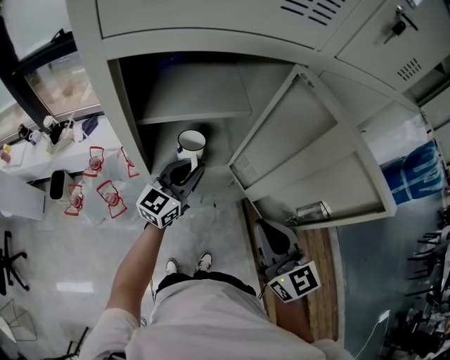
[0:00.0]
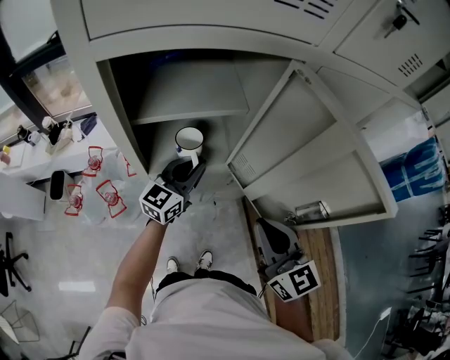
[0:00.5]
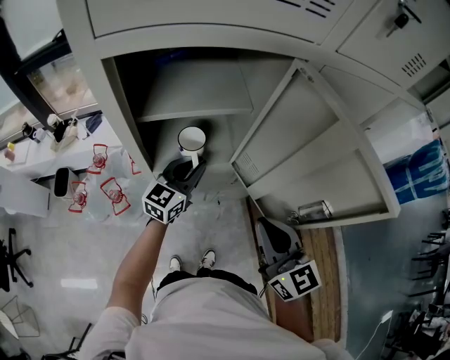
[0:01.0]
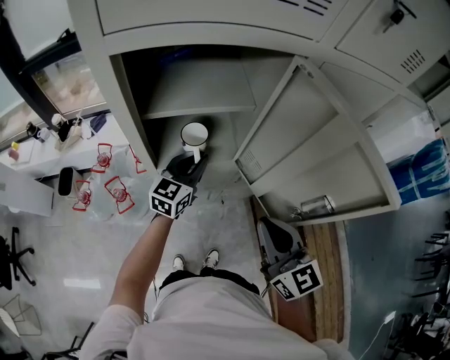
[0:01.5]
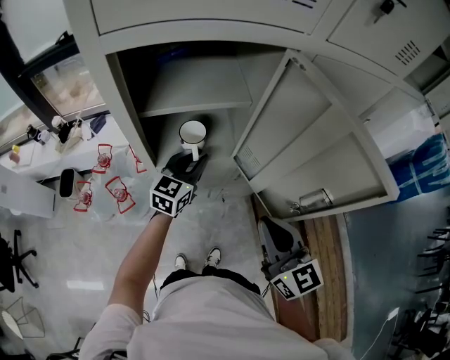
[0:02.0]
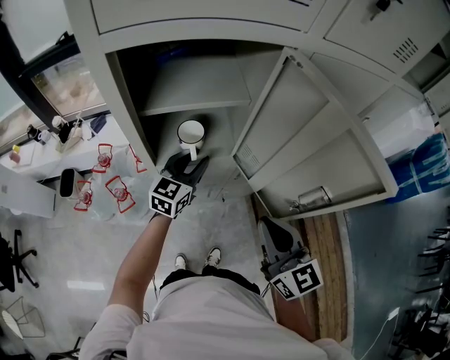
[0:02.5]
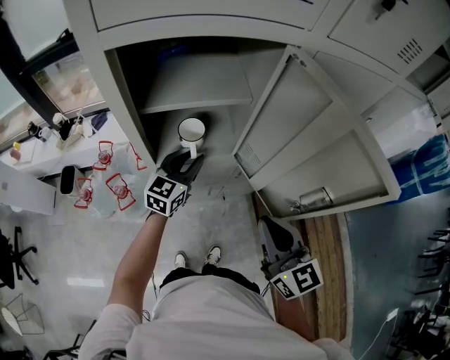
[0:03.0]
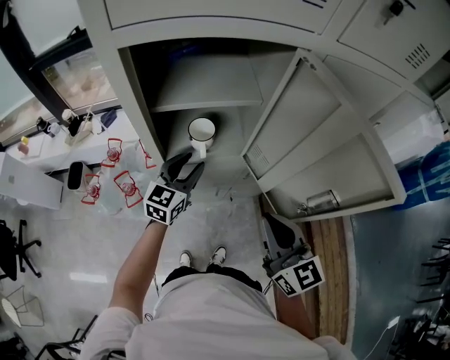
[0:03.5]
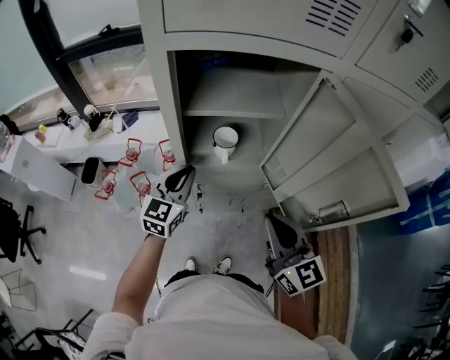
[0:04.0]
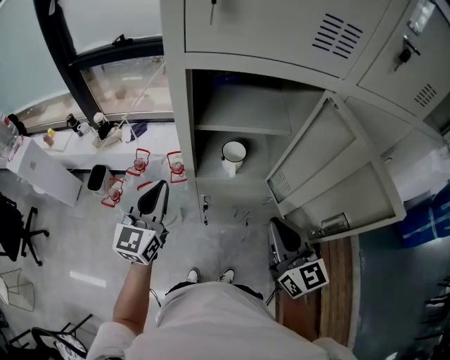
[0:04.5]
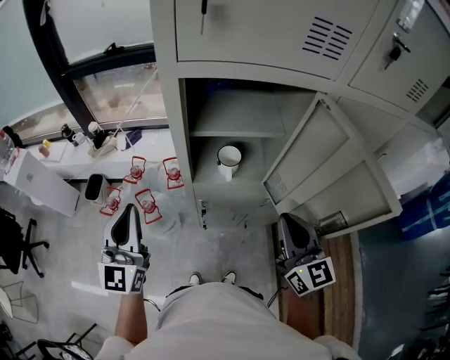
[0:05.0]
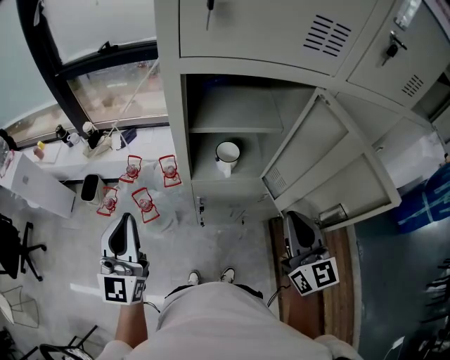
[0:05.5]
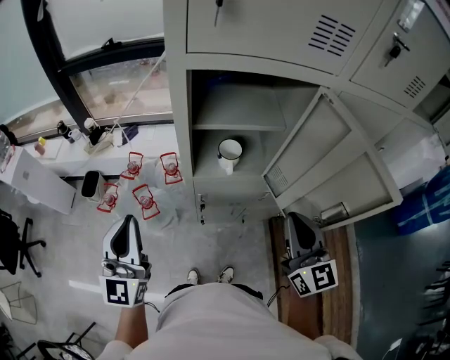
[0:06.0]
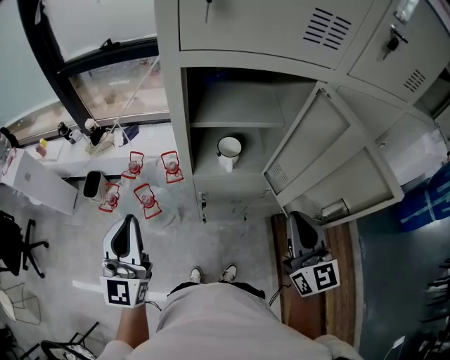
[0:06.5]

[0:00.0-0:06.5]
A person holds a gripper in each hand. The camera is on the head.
0:00.0 to 0:02.0: There are only small adjustments of the grippers.
0:02.0 to 0:04.5: The left gripper goes approximately 25 cm to the left, backward and upward, changes its angle by about 30 degrees, and opens and closes again; the right gripper shifts by approximately 5 cm.
0:04.5 to 0:06.5: The right gripper ends up roughly 5 cm from where it was, while the left gripper goes some 15 cm backward, to the left and upward.

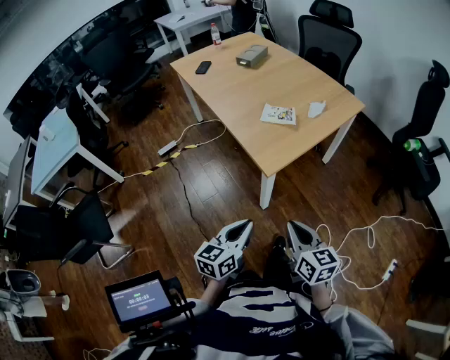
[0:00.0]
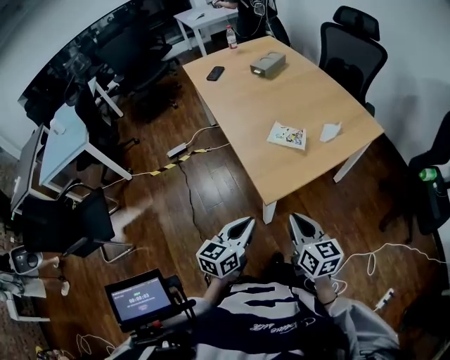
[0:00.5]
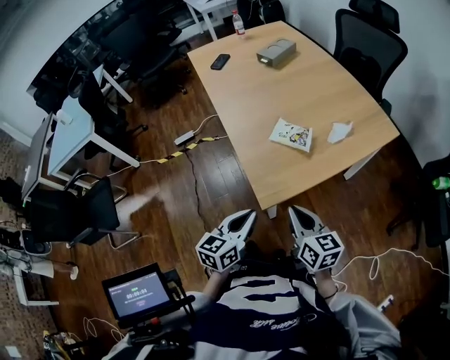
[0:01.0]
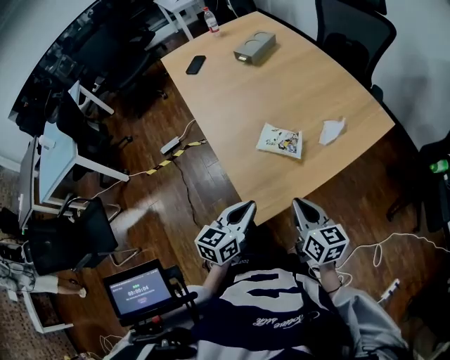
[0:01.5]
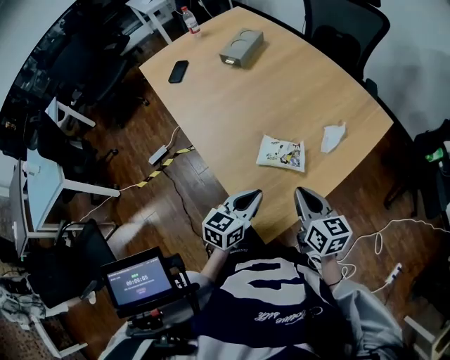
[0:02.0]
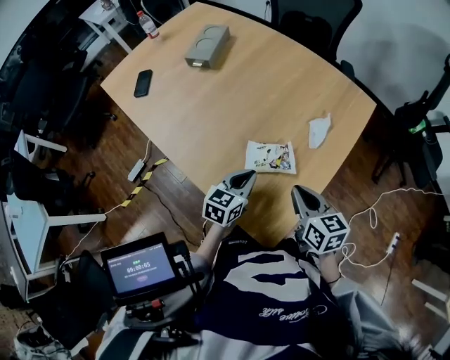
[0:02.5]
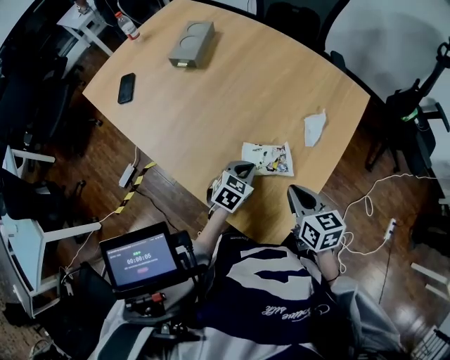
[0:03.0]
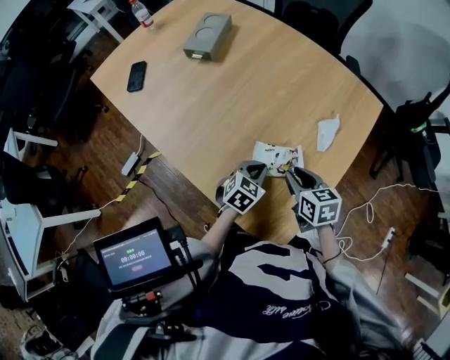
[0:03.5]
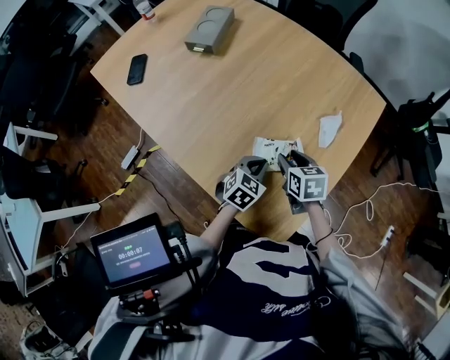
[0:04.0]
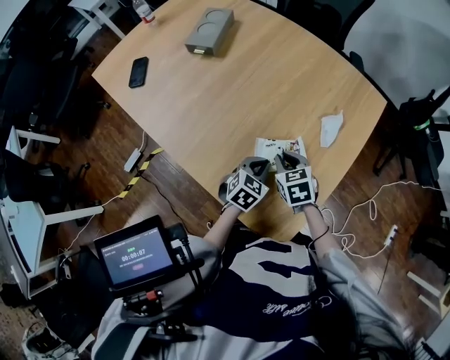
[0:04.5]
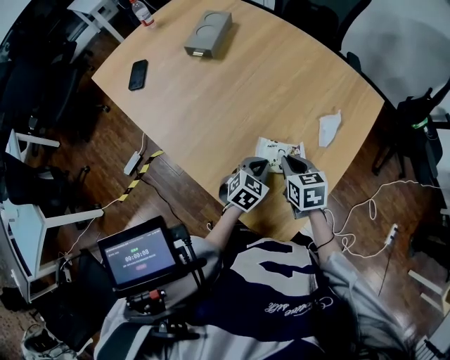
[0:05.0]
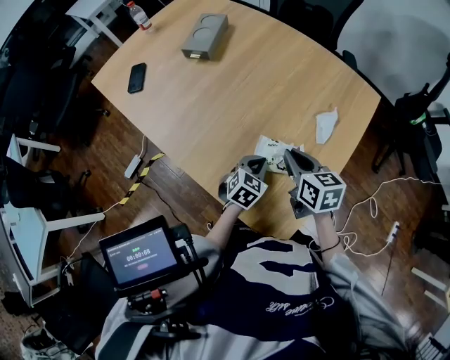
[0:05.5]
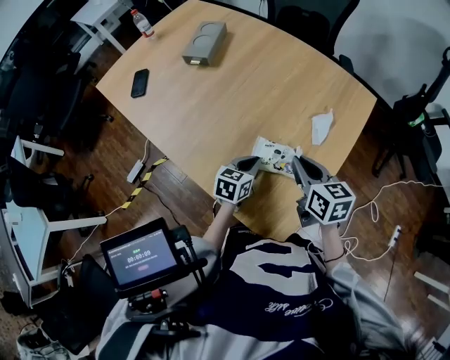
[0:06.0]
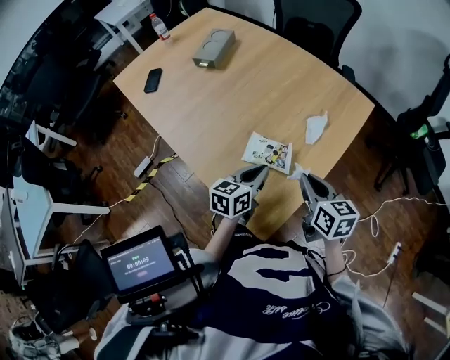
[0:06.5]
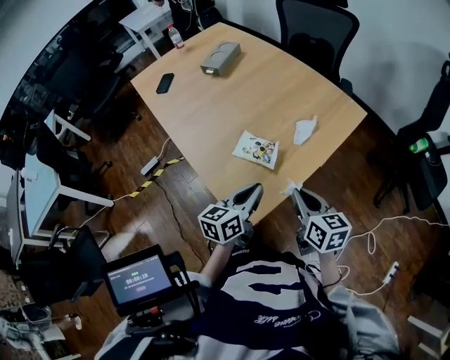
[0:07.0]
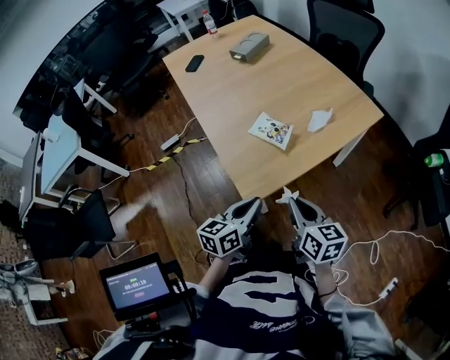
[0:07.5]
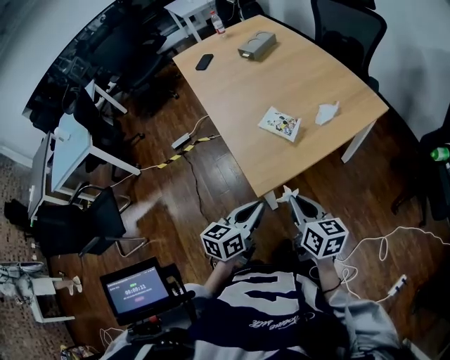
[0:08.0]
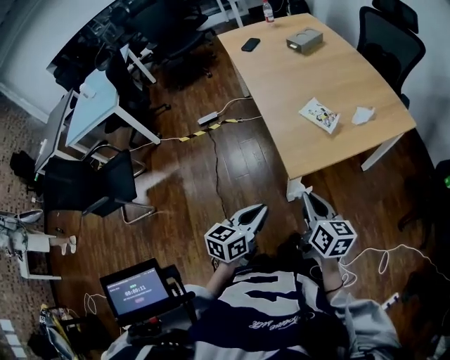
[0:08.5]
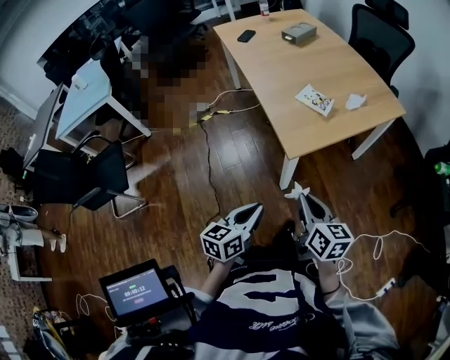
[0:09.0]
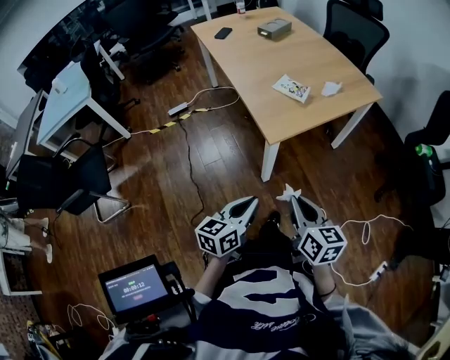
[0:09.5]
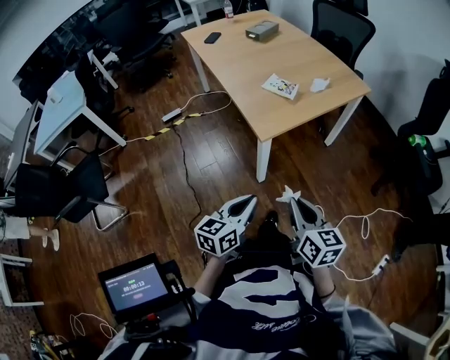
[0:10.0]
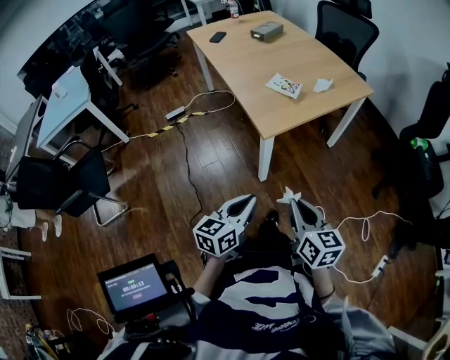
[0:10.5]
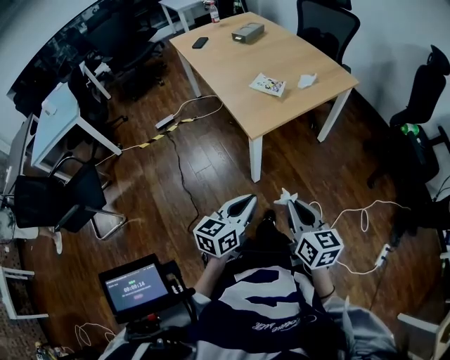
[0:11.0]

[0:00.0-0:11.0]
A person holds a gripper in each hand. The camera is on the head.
0:00.0 to 0:02.0: Both grippers are carried forward, roughly 40 cm.
0:02.0 to 0:03.5: Both grippers travel together forward and downward, some 15 cm. The right gripper rotates roughly 20 degrees, and opens. The left gripper rotates about 40 degrees.
0:03.5 to 0:05.5: The right gripper shifts about 5 cm upward.
0:05.5 to 0:07.5: The right gripper heads backward and to the right, covering approximately 30 cm, and turns by about 20 degrees, while the left gripper is displaced backward and upward by roughly 35 cm, and turns by approximately 60 degrees.
0:07.5 to 0:09.0: The two grippers go approximately 25 cm backward and to the left.
0:09.0 to 0:11.0: The left gripper travels to the right and backward by some 10 cm. The right gripper heads backward and to the right, covering roughly 15 cm.

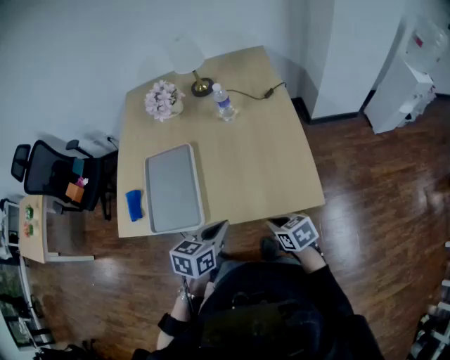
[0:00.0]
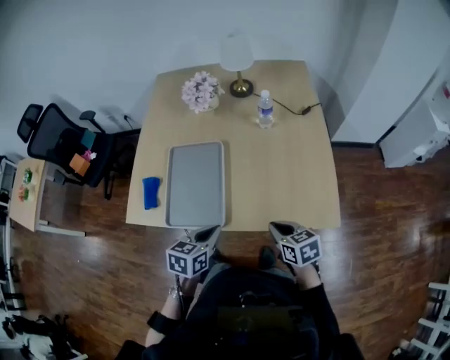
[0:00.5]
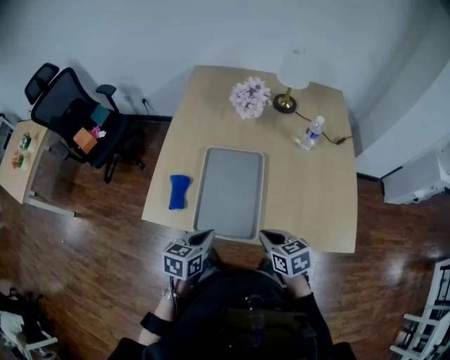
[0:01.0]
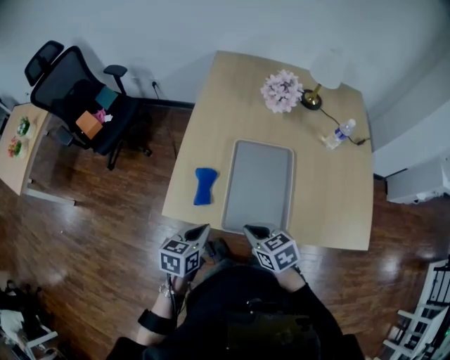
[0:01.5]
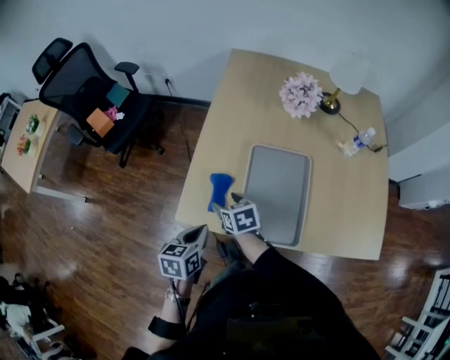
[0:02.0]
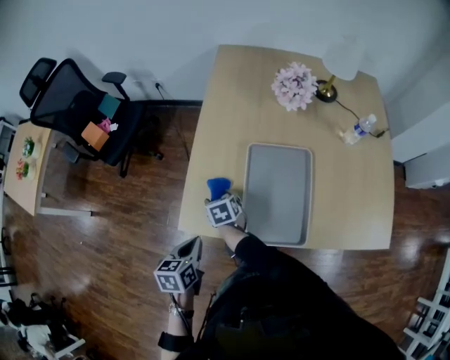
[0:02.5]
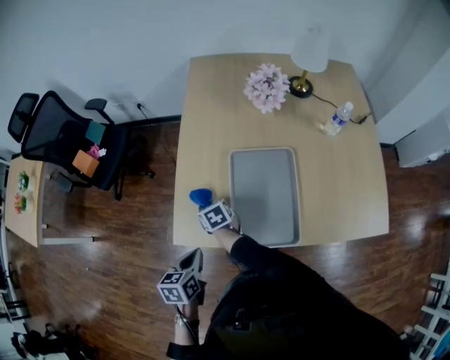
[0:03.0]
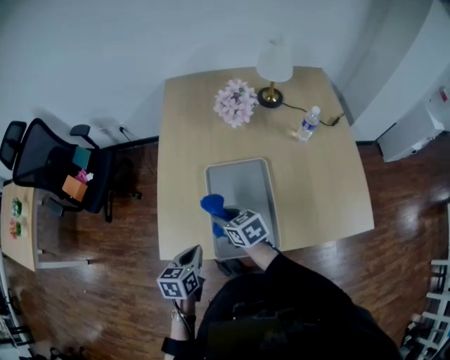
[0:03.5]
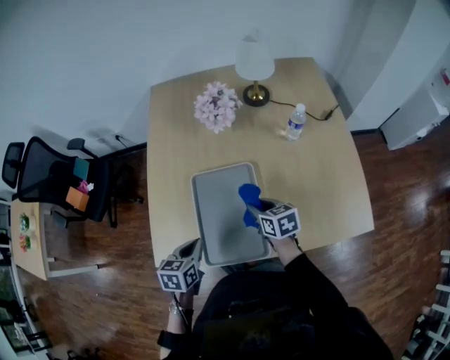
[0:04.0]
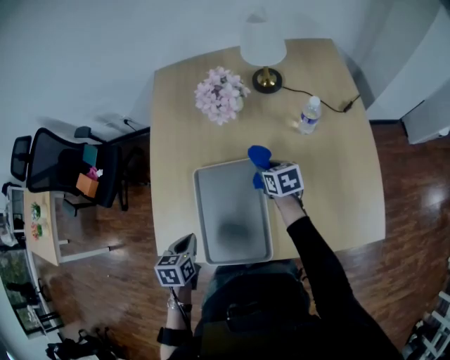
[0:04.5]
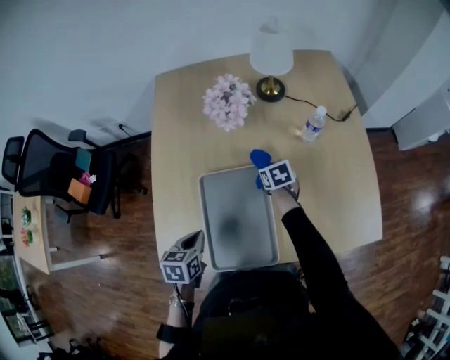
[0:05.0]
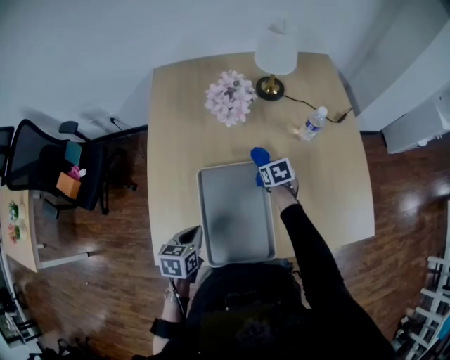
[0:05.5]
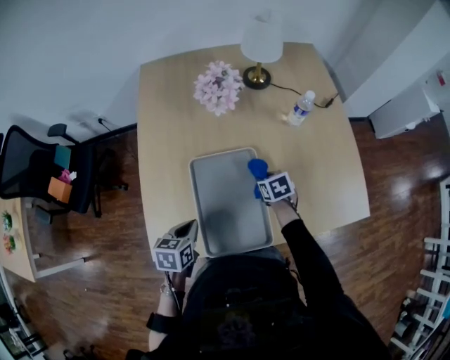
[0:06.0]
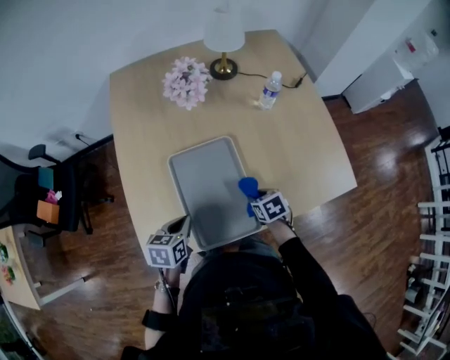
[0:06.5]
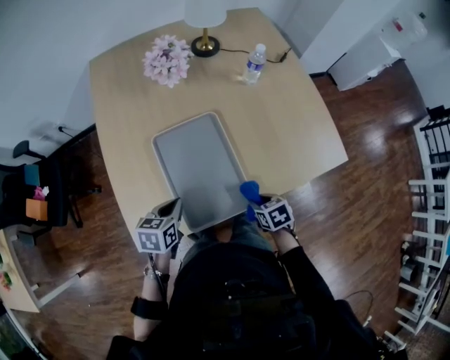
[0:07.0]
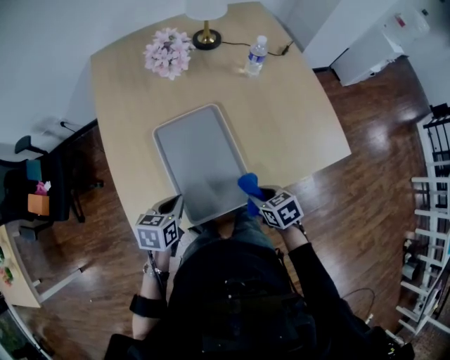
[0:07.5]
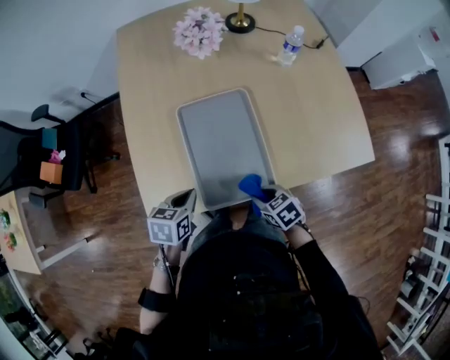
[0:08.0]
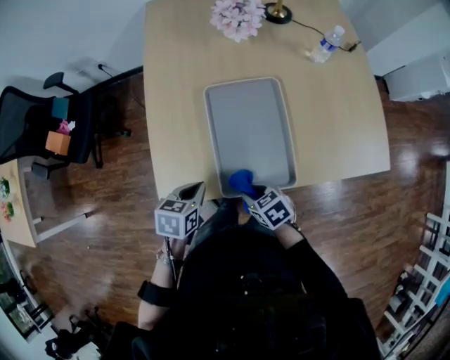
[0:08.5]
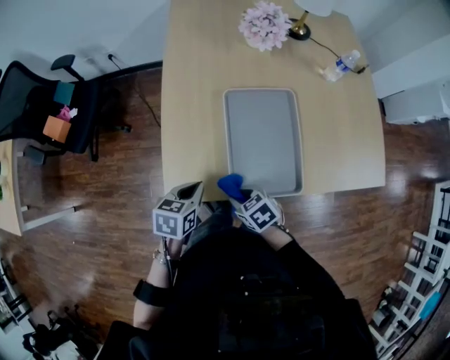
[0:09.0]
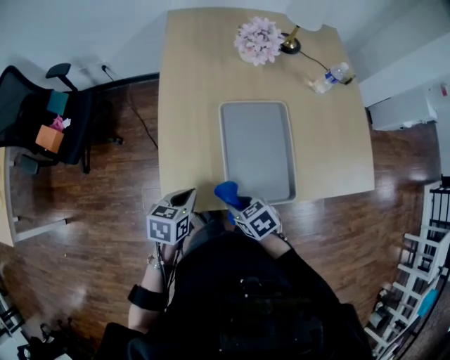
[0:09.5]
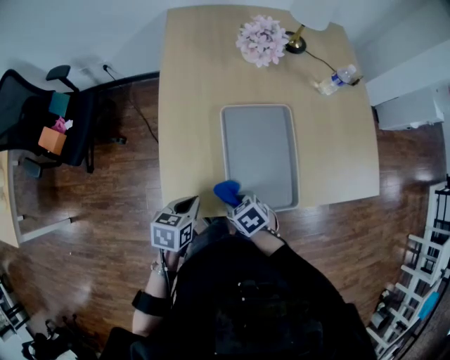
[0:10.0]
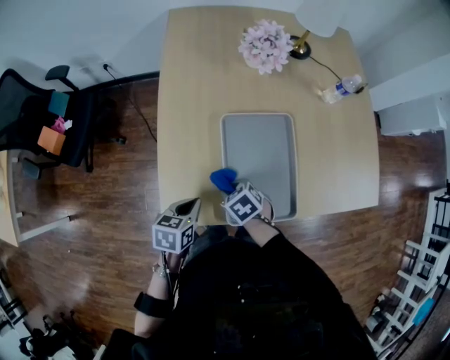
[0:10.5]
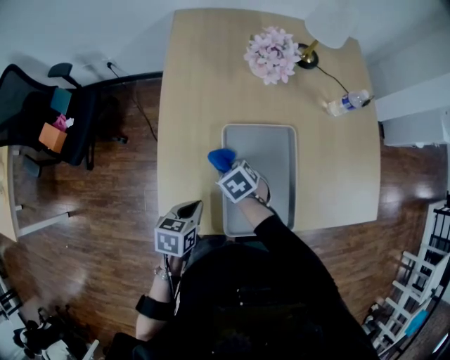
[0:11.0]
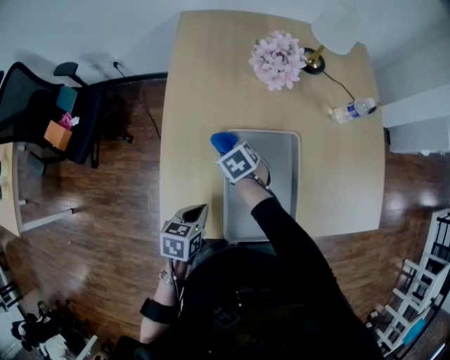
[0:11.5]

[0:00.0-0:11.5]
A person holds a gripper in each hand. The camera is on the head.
0:00.0 to 0:02.0: The pair of grippers is taken to the left, about 50 cm. The left gripper swivels about 30 degrees. The right gripper opens its fingers.
0:02.0 to 0:04.0: The left gripper is displaced to the right and forward by about 15 cm; the right gripper travels to the right by about 30 cm, turns by some 20 degrees, and closes its fingers.
0:04.0 to 0:06.0: The left gripper moves roughly 5 cm. Meanwhile the right gripper travels downward by roughly 10 cm, goes forward and returns, approximately 15 cm each way, and swivels roughly 20 degrees.
0:06.0 to 0:07.5: The right gripper heads backward, covering about 25 cm.
0:07.5 to 0:09.5: The right gripper travels to the left by approximately 25 cm, and changes its angle by about 20 degrees, while the left gripper travels to the left by approximately 15 cm.
0:09.5 to 0:11.5: The left gripper is displaced forward and to the right by some 10 cm; the right gripper is displaced forward by roughly 25 cm.
